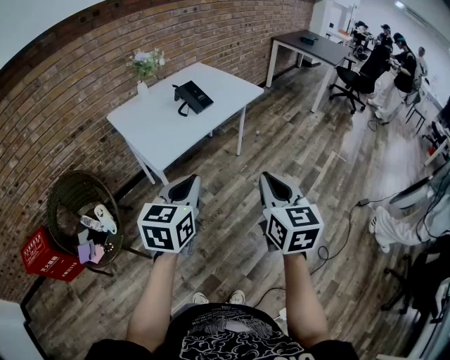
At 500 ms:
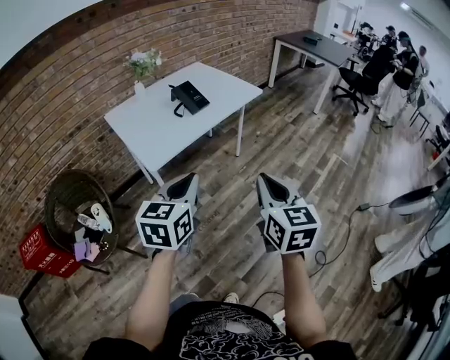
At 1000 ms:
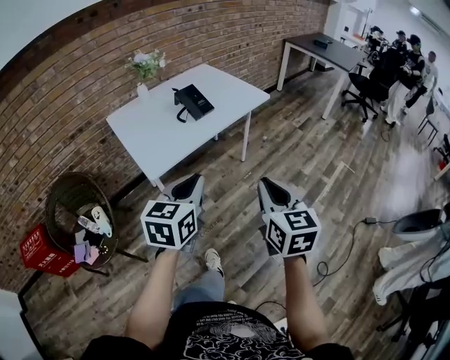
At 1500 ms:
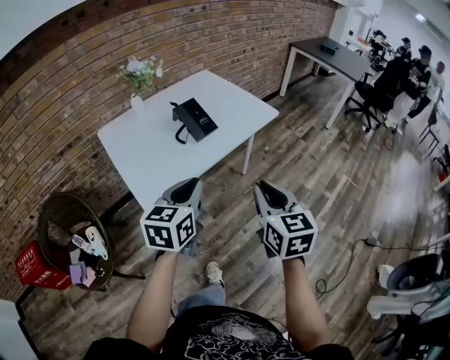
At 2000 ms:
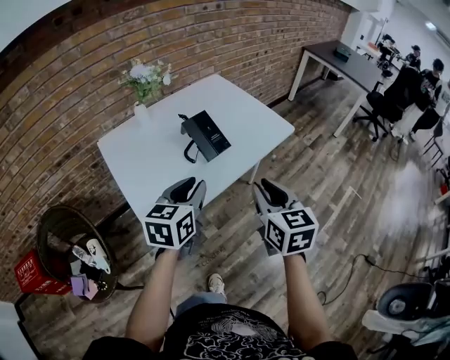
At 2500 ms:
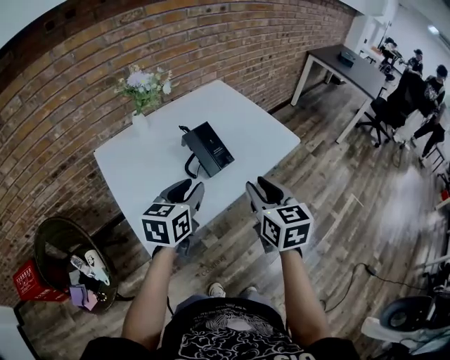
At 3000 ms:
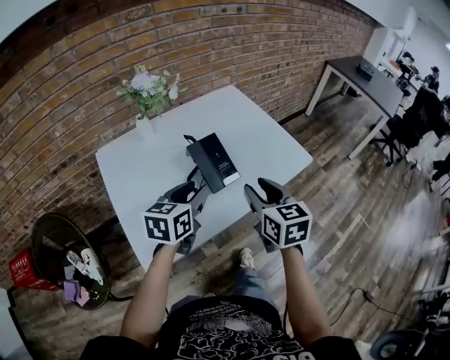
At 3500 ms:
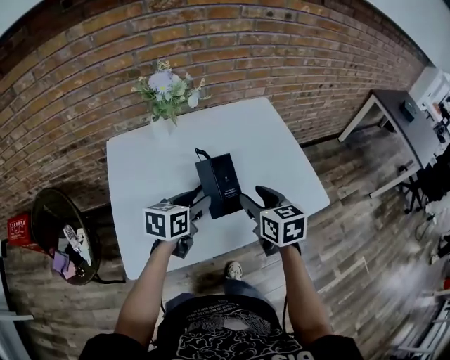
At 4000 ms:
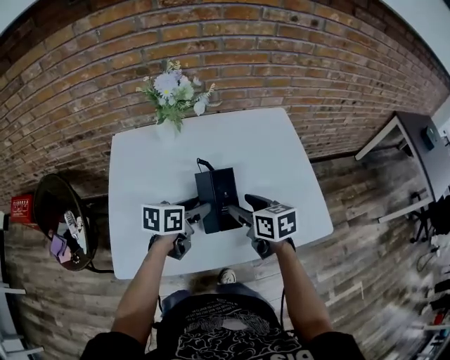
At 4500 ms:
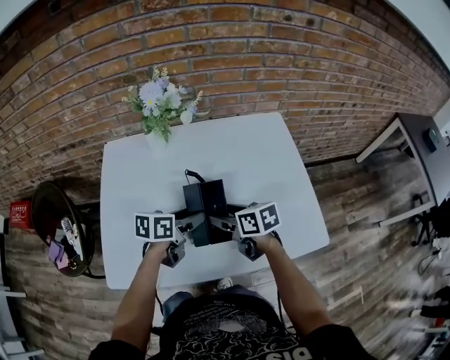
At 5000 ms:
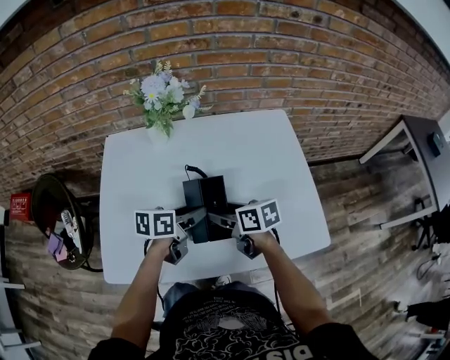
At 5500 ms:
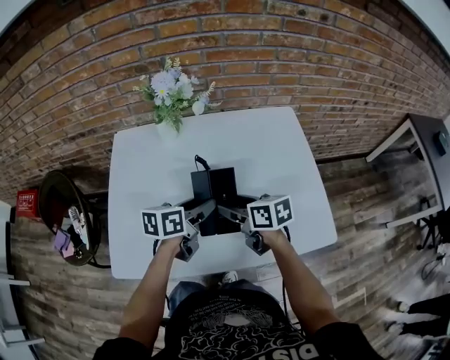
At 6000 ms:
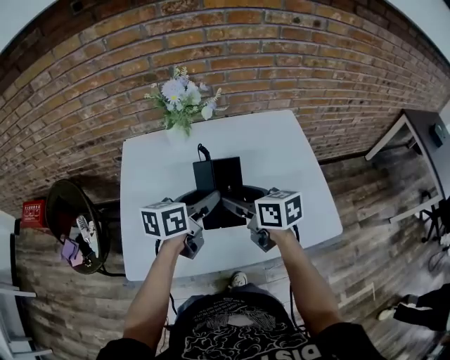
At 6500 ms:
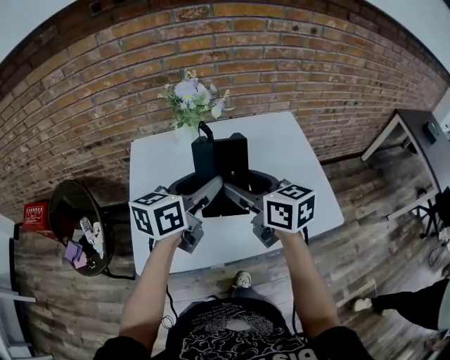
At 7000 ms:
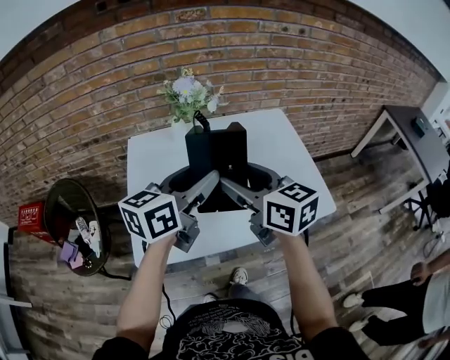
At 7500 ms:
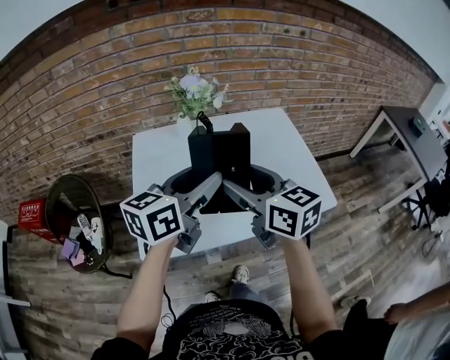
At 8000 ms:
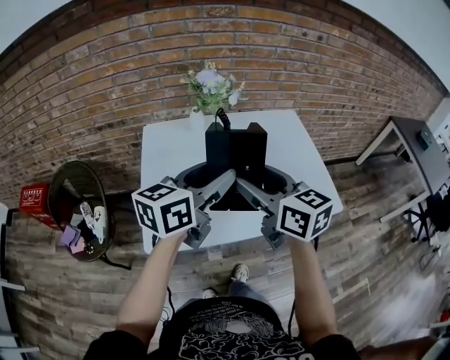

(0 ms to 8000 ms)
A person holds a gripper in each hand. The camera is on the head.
0 ms - 2000 ms: Both grippers travel together forward, some 35 cm.
2000 ms - 4000 ms: The left gripper moves roughly 30 cm, changes its angle by roughly 30 degrees, and opens; the right gripper shifts by about 35 cm, changes its angle by approximately 50 degrees, and opens its fingers.
4000 ms - 6000 ms: Both grippers move upward, some 10 cm.
6000 ms - 8000 ms: The two grippers go some 20 cm upward and backward. The left gripper swivels approximately 20 degrees. The right gripper changes its angle by some 20 degrees.

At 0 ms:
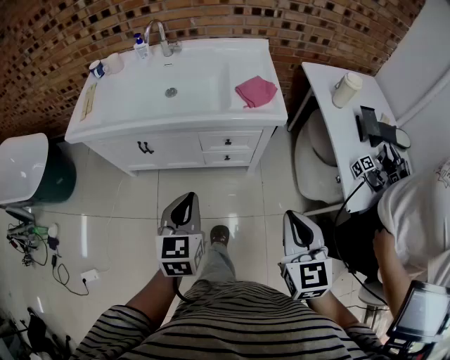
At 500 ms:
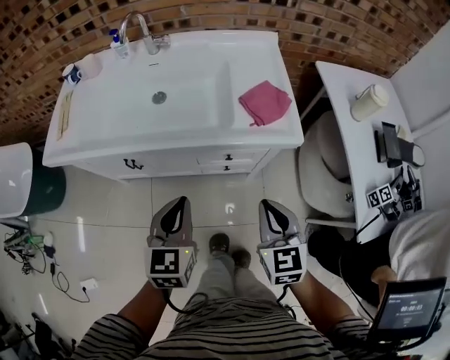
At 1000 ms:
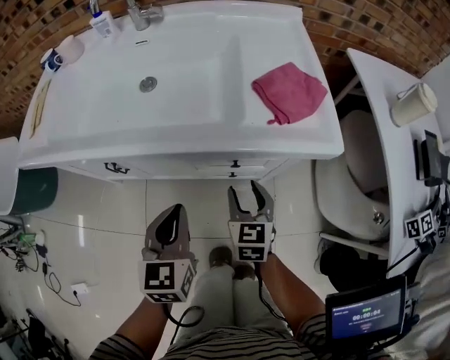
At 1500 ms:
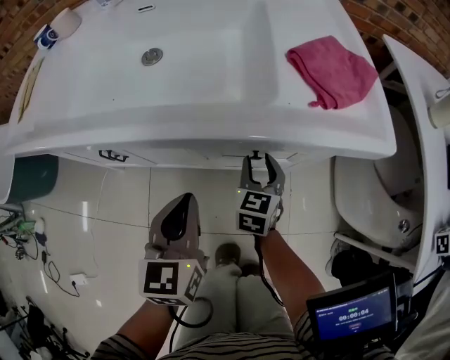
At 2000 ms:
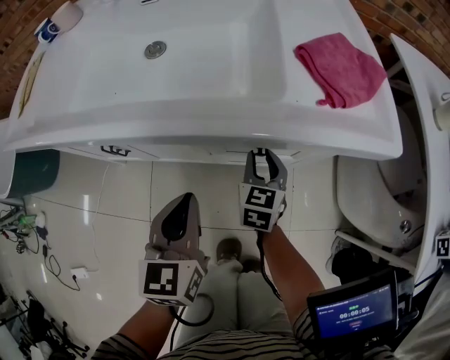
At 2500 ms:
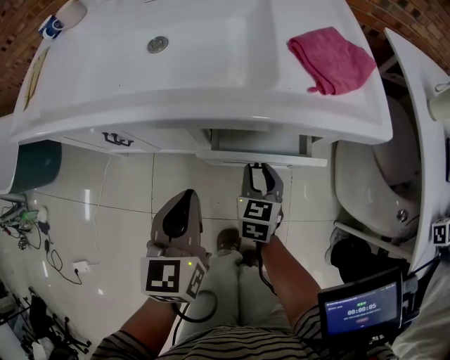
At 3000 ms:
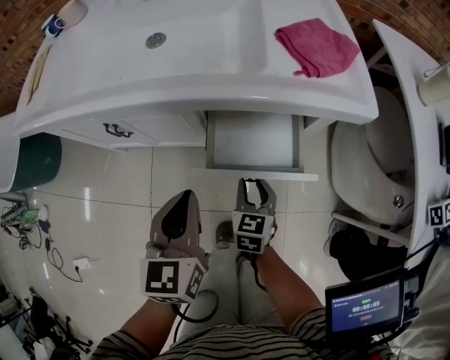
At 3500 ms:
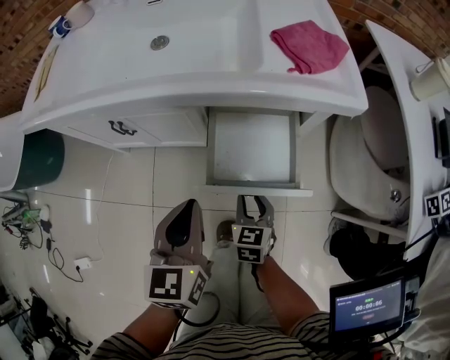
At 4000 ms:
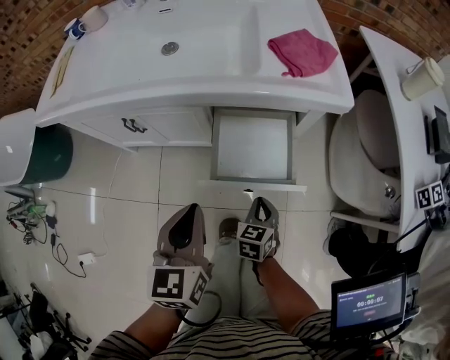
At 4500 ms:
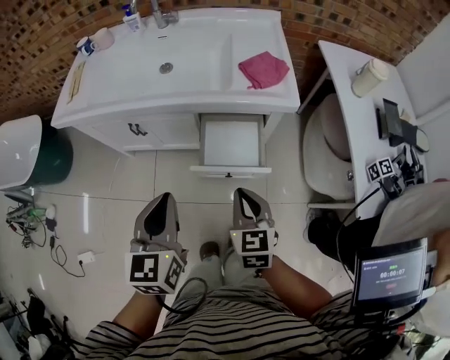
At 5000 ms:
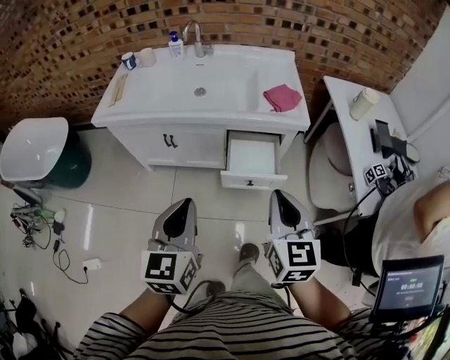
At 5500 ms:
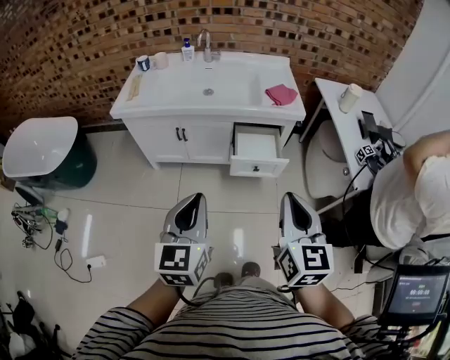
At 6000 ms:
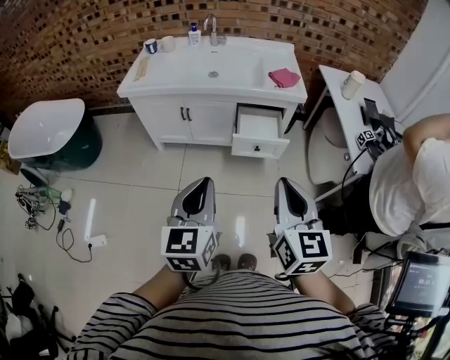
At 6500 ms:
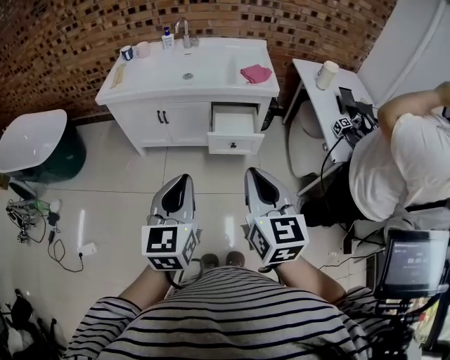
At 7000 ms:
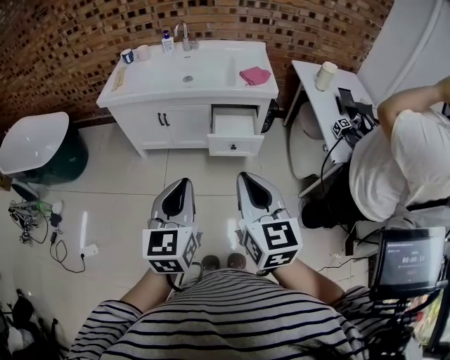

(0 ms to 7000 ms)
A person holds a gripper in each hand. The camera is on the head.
0 ms - 2000 ms: The left gripper is displaced downward and forward by approximately 30 cm. The right gripper moves downward and forward, roughly 60 cm, and opens up.
2000 ms - 3500 ms: The left gripper shifts some 10 cm backward and upward, while the right gripper heads backward, covering roughly 20 cm.
3500 ms - 5000 ms: The left gripper heads upward and backward, covering approximately 30 cm. The right gripper heads upward, covering roughly 40 cm, changes its angle by roughly 30 degrees, and closes its fingers.
5000 ms - 7000 ms: Both grippers move backward, about 20 cm.

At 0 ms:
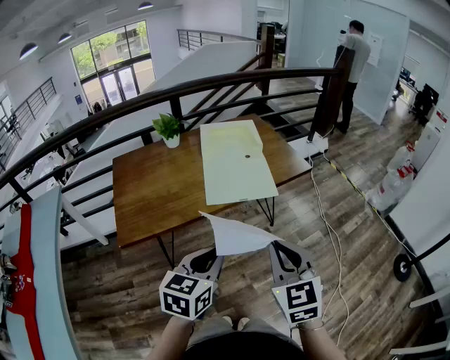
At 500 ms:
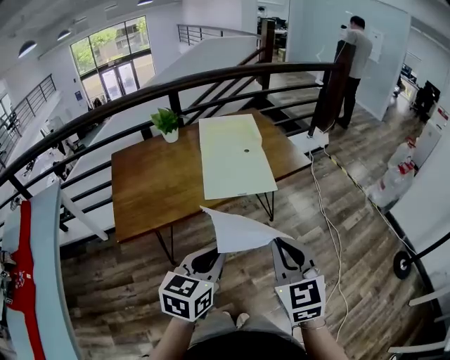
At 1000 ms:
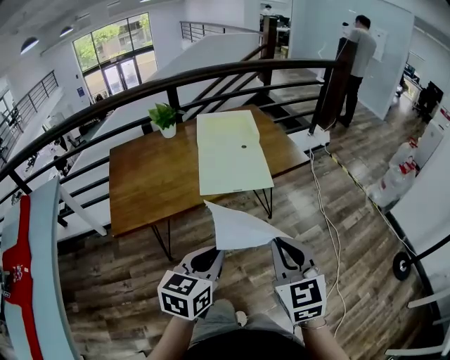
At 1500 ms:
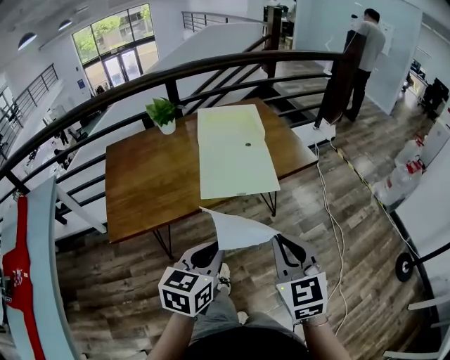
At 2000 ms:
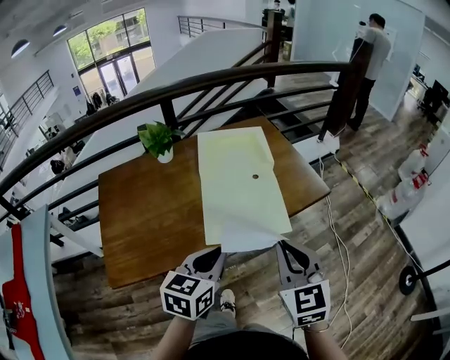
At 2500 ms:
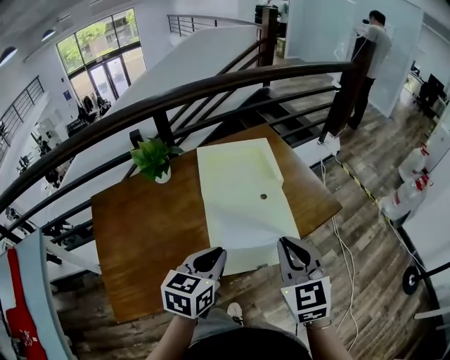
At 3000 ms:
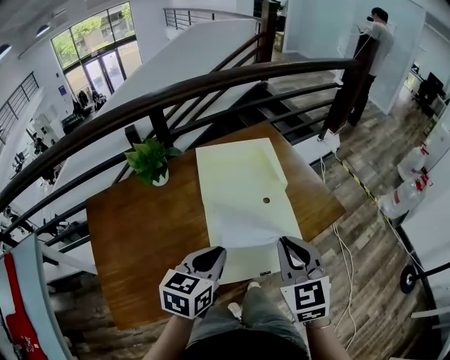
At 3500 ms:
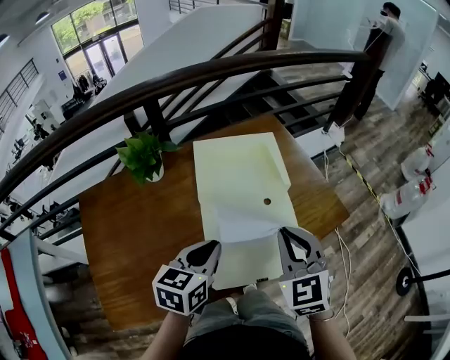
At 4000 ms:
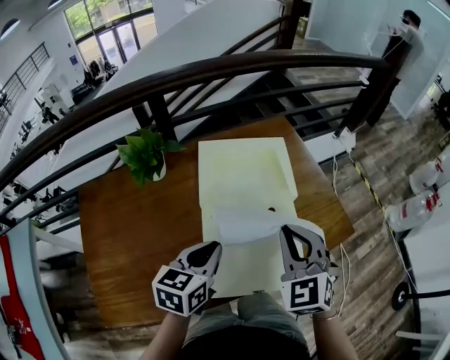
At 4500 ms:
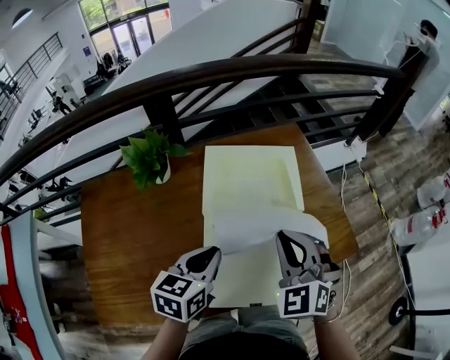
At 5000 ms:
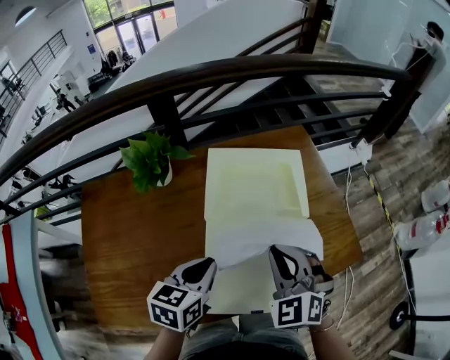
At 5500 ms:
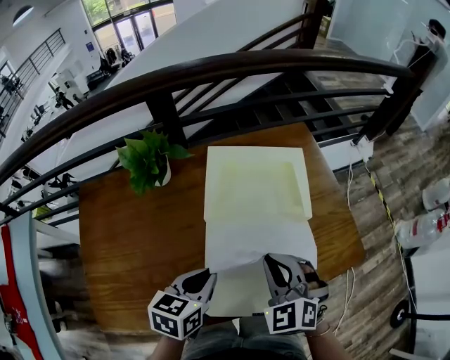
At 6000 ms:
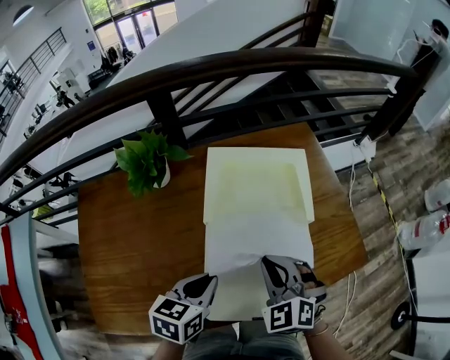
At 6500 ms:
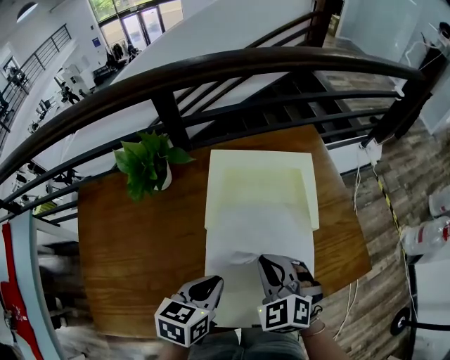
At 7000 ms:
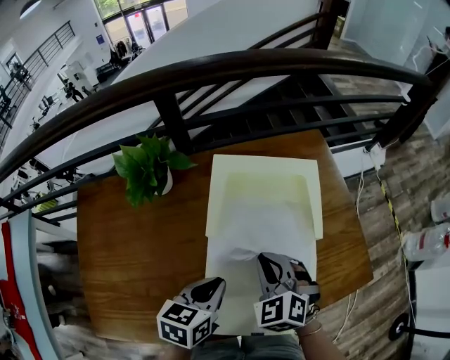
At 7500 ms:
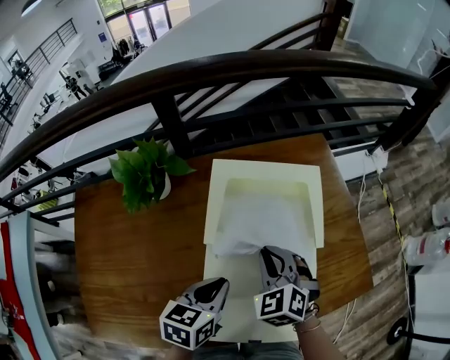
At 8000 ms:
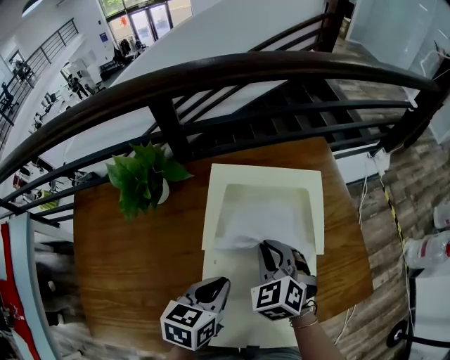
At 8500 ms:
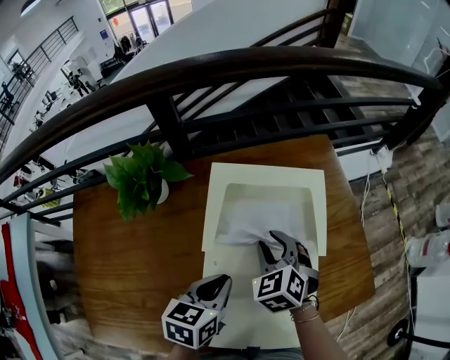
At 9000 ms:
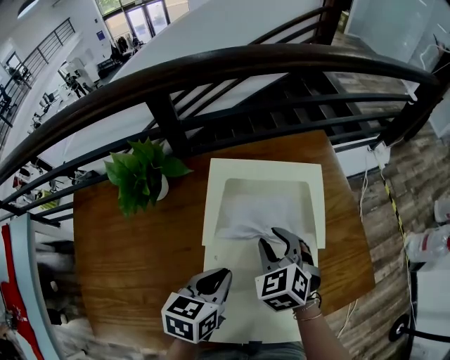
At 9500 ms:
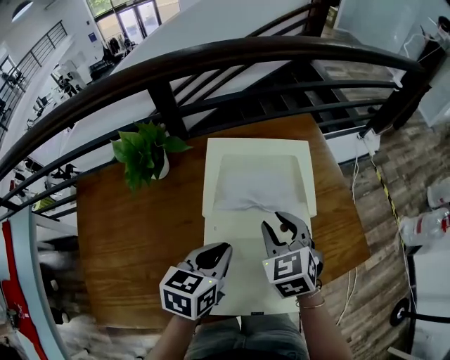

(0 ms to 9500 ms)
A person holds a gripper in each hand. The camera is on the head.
0 ms - 2000 ms: Both grippers move forward, about 20 cm.
2000 ms - 4000 ms: The grippers both shift forward by roughly 25 cm. The right gripper turns by some 20 degrees.
4000 ms - 5500 ms: The right gripper goes some 10 cm downward, while the left gripper is displaced downward by some 5 cm.
5500 ms - 7500 ms: The right gripper is displaced forward and downward by approximately 10 cm; the left gripper moves forward, approximately 5 cm.
7500 ms - 9500 ms: The right gripper shifts by some 5 cm, and opens.

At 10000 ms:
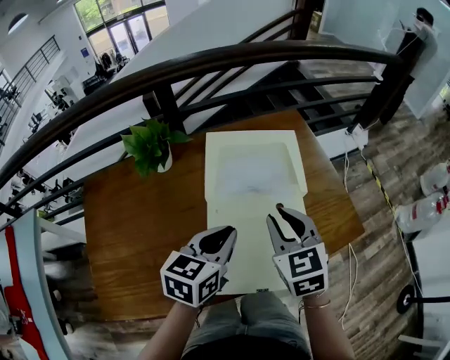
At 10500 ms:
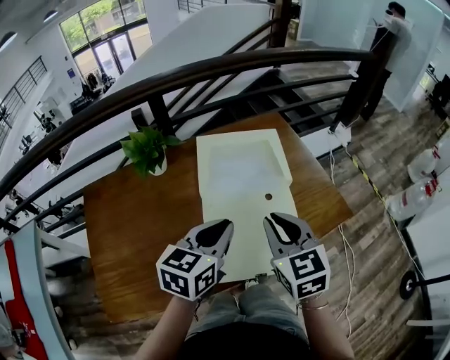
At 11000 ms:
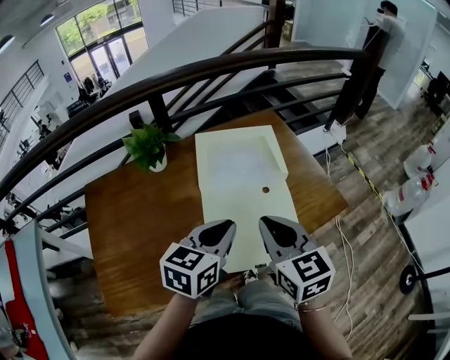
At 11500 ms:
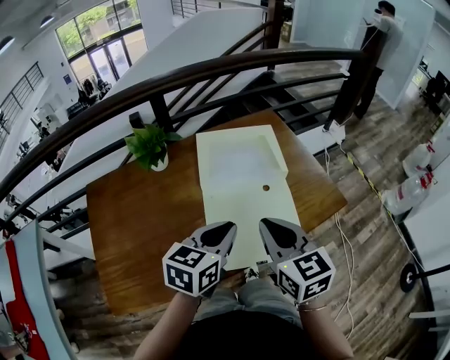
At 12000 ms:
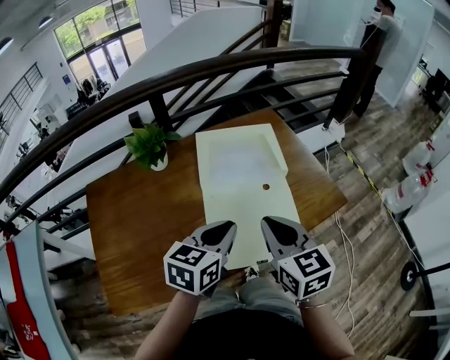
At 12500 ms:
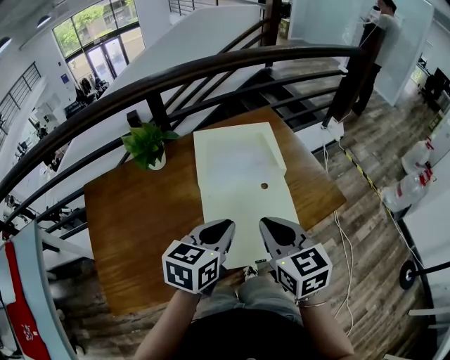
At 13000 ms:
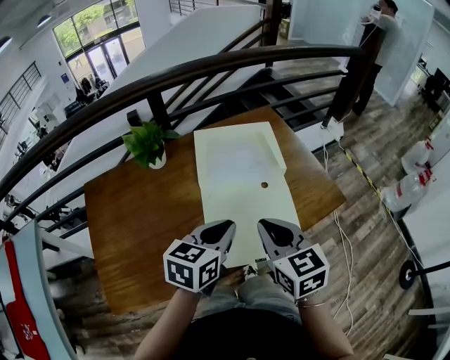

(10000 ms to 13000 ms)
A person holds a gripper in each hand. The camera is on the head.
10000 ms - 11500 ms: The right gripper shifts about 15 cm backward and upward; the left gripper is displaced backward by some 10 cm.
11500 ms - 13000 ms: The grippers move only a little.
